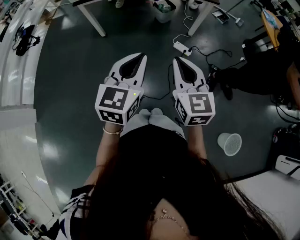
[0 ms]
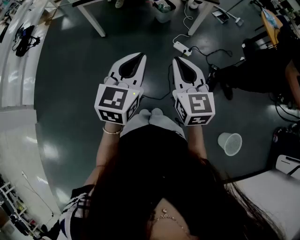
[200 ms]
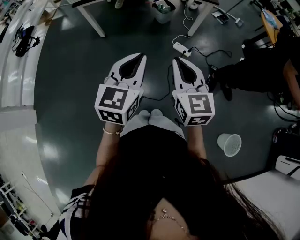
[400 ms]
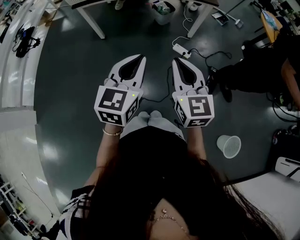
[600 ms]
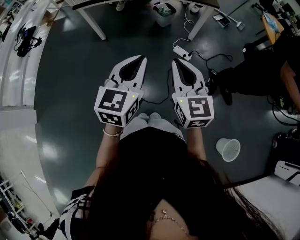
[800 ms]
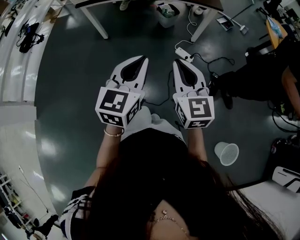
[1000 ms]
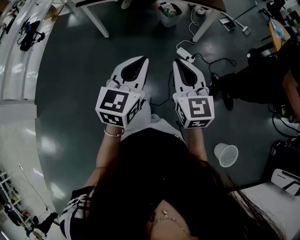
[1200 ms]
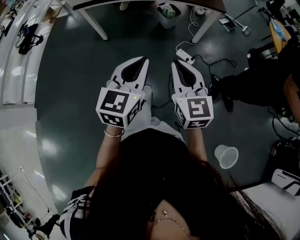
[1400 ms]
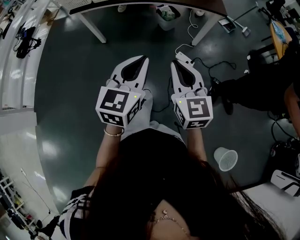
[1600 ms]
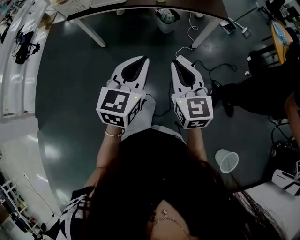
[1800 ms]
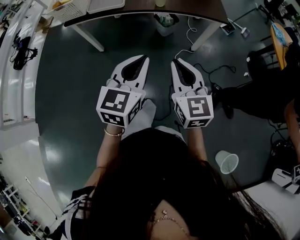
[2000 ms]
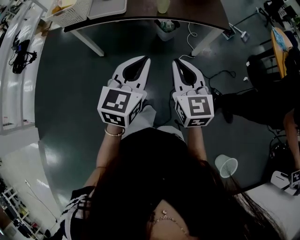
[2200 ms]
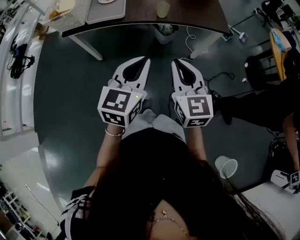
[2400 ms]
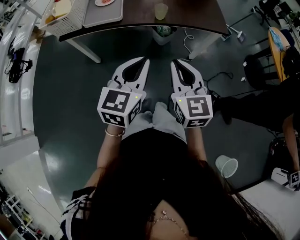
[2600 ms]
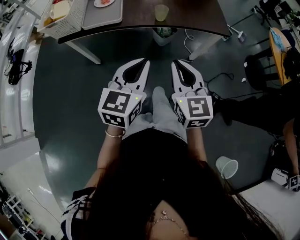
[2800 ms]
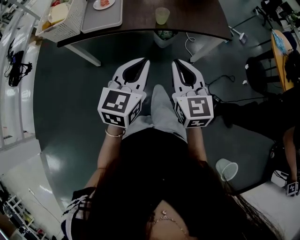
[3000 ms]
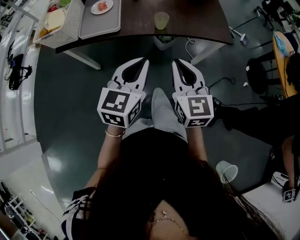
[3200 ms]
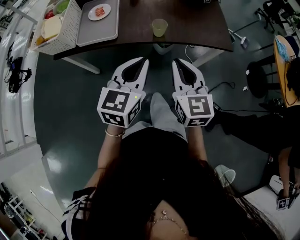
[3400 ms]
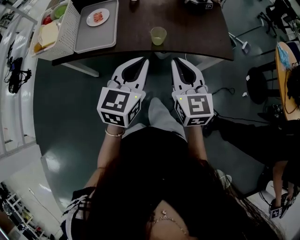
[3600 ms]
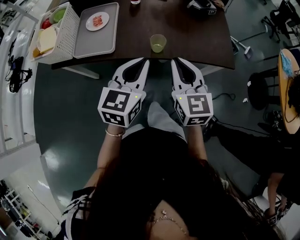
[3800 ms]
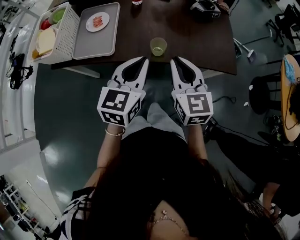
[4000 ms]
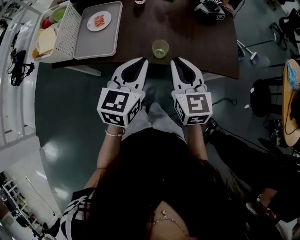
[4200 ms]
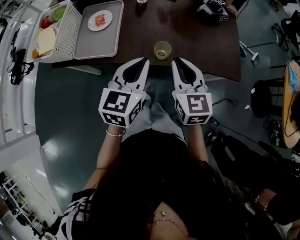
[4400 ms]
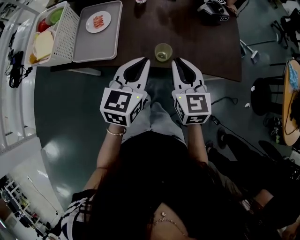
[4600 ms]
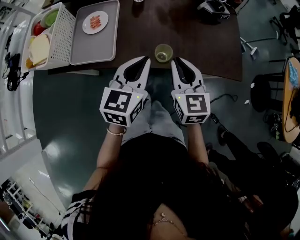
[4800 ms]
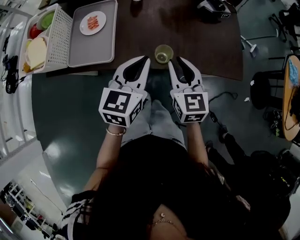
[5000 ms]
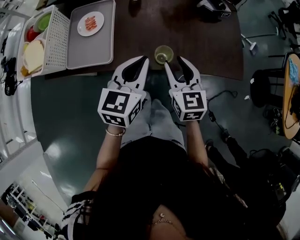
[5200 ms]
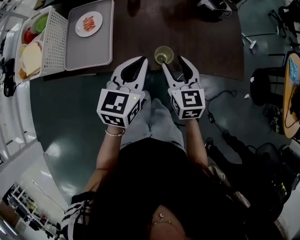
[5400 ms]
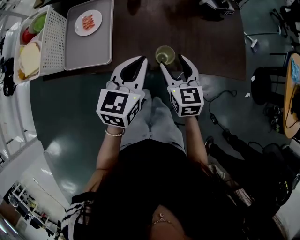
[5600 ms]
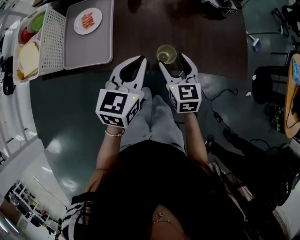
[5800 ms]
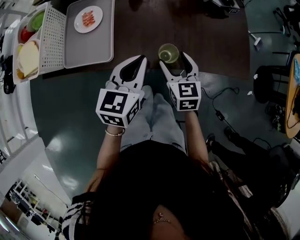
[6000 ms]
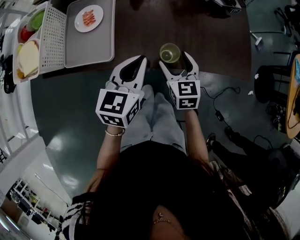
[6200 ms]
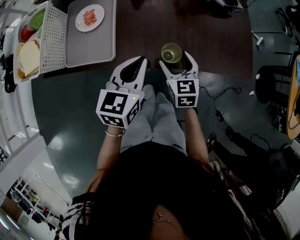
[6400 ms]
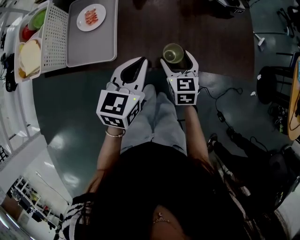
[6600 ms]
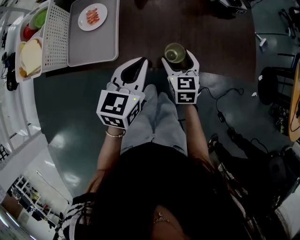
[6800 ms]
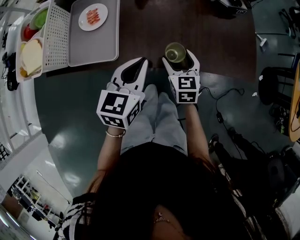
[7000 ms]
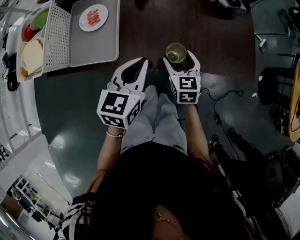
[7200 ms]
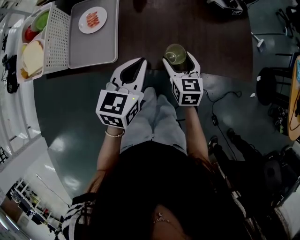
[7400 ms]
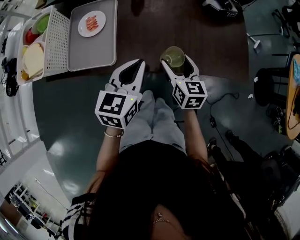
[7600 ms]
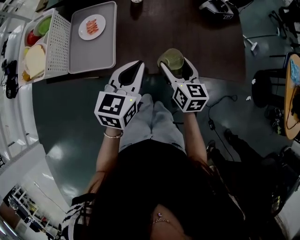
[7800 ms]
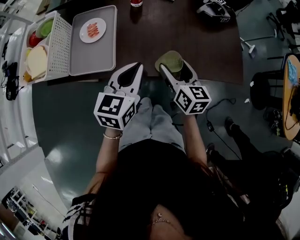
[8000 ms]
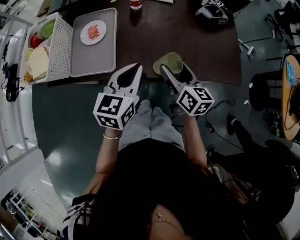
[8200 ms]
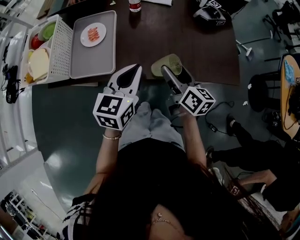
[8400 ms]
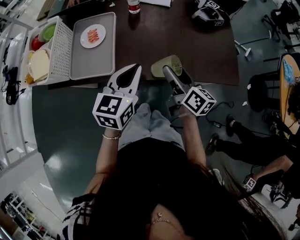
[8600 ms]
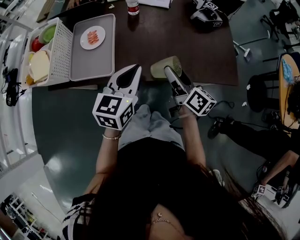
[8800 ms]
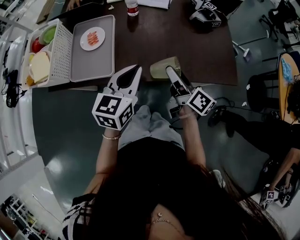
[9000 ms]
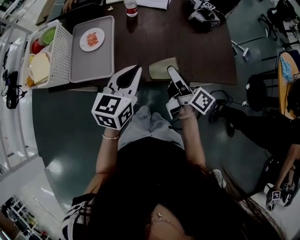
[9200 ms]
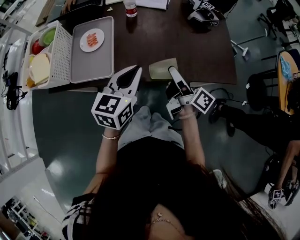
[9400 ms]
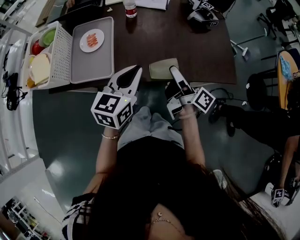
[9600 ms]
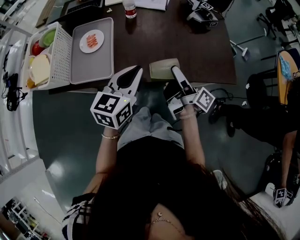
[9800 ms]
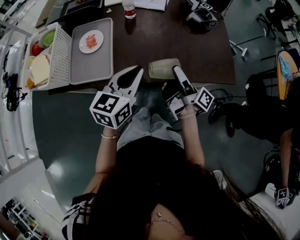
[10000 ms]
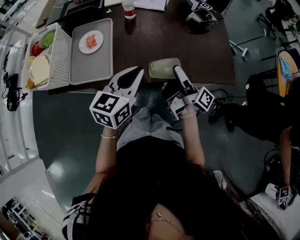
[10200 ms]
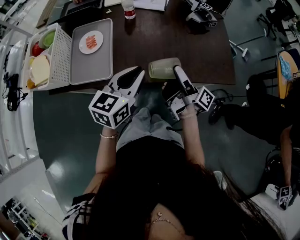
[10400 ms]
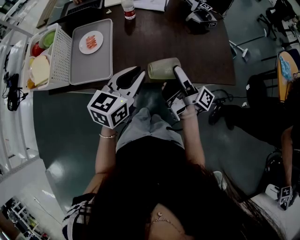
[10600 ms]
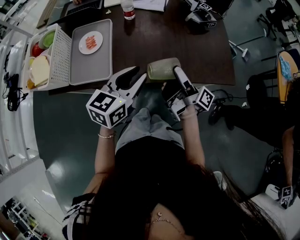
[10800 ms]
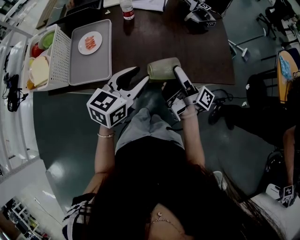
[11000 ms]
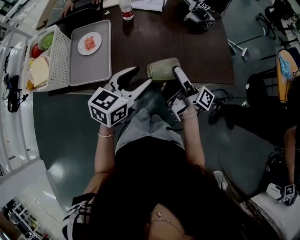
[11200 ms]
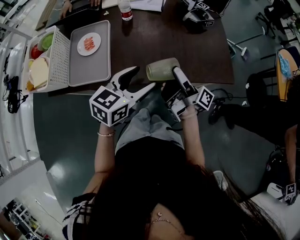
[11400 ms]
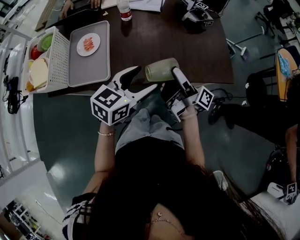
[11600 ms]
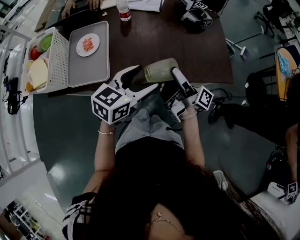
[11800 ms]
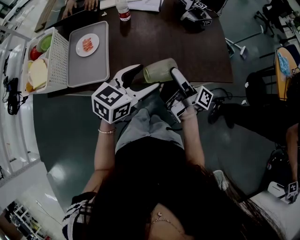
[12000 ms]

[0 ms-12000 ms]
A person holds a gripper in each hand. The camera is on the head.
0 ms to 1600 ms: Both grippers travel together forward, roughly 10 cm.
1600 ms to 3000 ms: Both grippers travel together forward, roughly 25 cm.
3000 ms to 4400 ms: The two grippers go roughly 25 cm forward.
4400 ms to 6000 ms: The left gripper moves forward and downward, some 10 cm; the right gripper moves downward and forward, about 15 cm, and opens.
6000 ms to 7600 ms: There are only small adjustments of the grippers.
7600 ms to 9000 ms: The right gripper moves upward, roughly 10 cm, and rolls clockwise, seen from behind, by some 40 degrees.
9000 ms to 10400 ms: The right gripper rotates some 40 degrees.
10400 ms to 12000 ms: The left gripper travels to the right by some 5 cm, and opens.

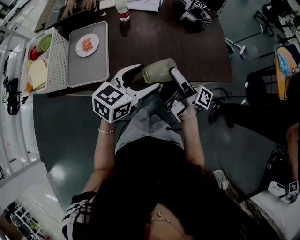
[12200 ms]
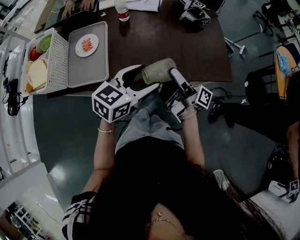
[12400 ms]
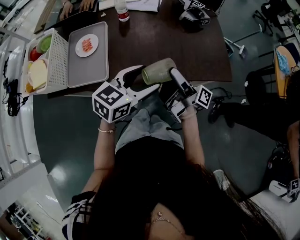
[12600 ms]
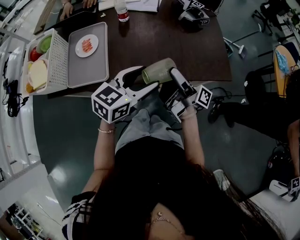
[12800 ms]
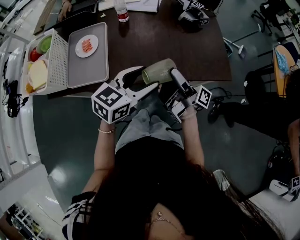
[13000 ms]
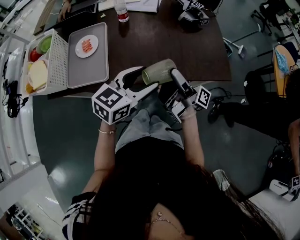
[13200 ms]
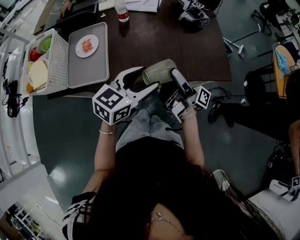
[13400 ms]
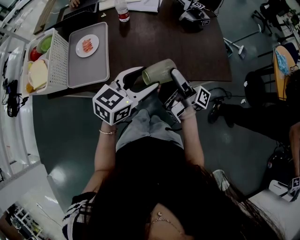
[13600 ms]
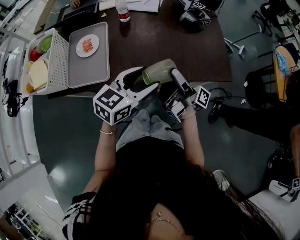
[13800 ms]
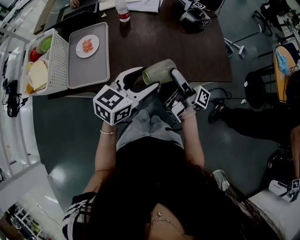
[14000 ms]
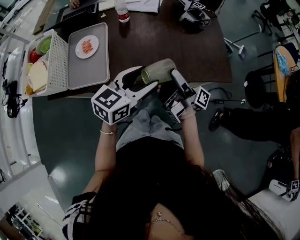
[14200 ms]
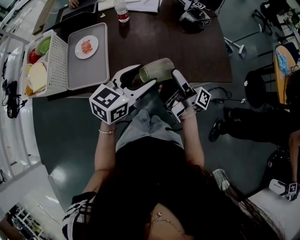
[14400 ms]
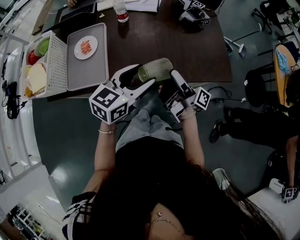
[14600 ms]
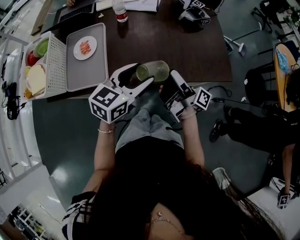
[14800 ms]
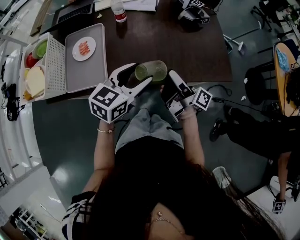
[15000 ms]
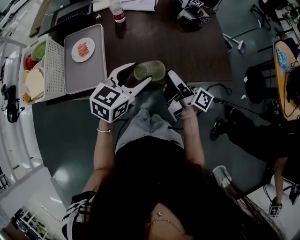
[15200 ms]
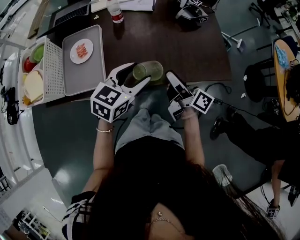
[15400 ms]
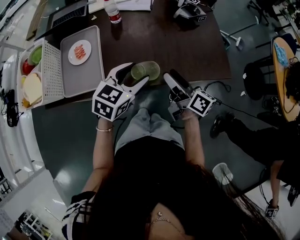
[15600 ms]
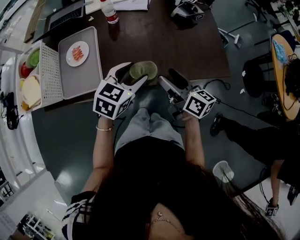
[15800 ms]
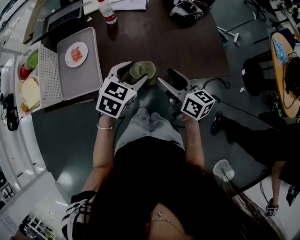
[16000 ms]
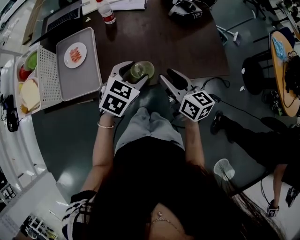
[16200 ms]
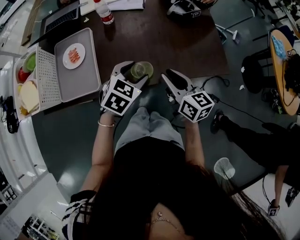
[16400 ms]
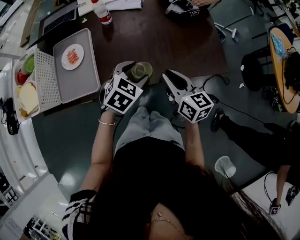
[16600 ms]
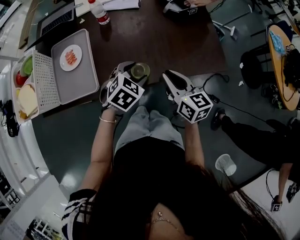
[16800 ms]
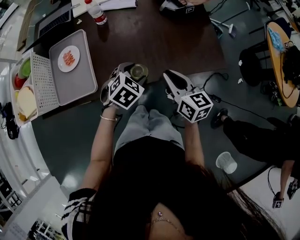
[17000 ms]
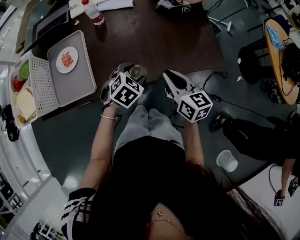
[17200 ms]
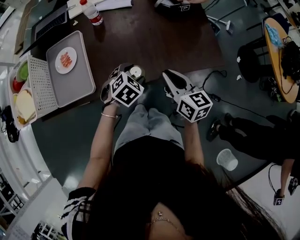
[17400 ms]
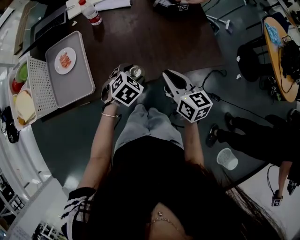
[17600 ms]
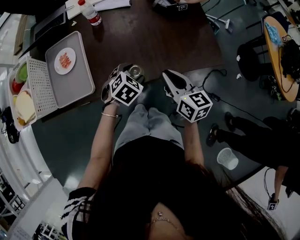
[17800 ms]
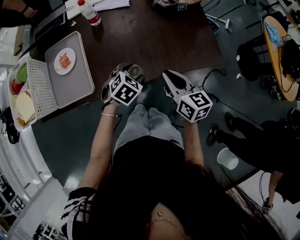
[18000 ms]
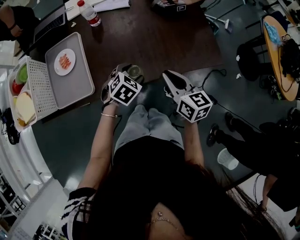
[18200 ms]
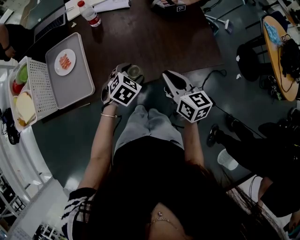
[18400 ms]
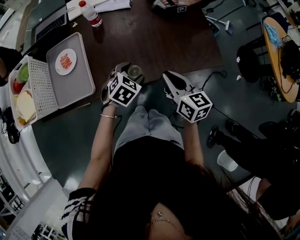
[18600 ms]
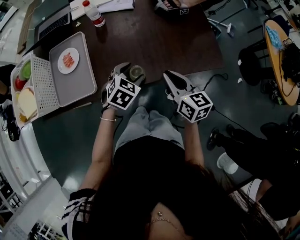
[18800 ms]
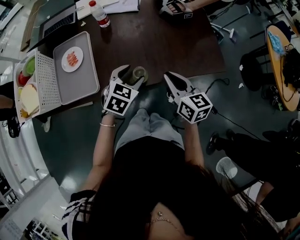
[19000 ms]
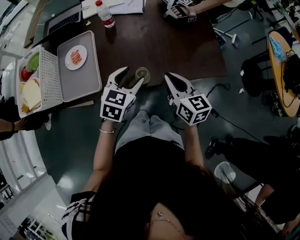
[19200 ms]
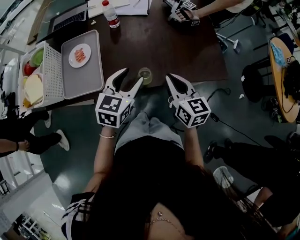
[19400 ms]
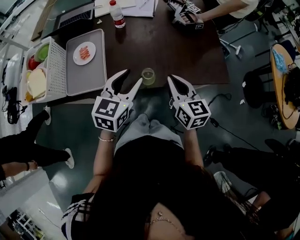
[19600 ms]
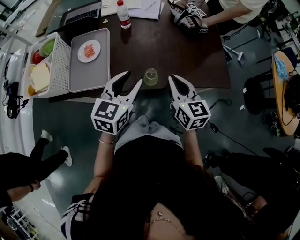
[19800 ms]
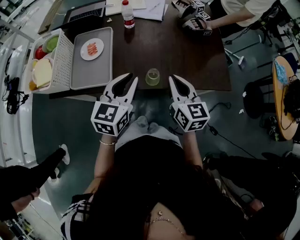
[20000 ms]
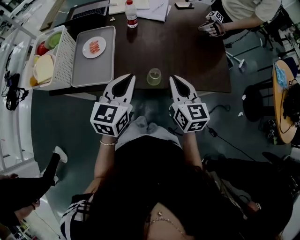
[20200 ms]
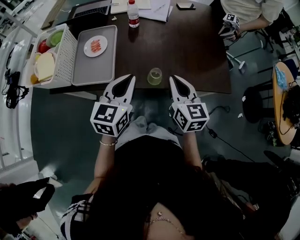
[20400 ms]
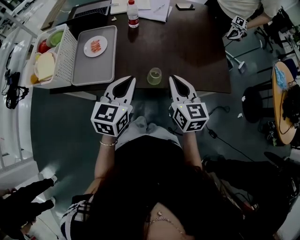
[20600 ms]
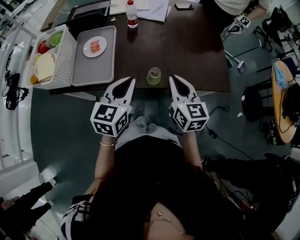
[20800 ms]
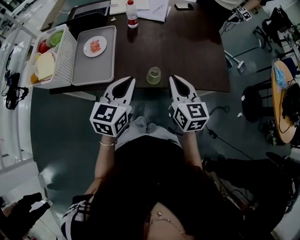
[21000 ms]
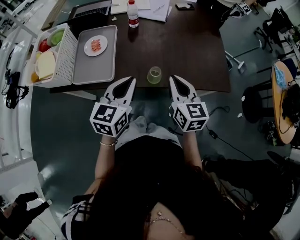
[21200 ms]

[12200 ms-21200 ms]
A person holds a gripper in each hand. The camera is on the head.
12200 ms to 13800 ms: The grippers move only a little.
13800 ms to 15200 ms: The right gripper moves about 5 cm, and changes its angle by some 20 degrees.
15200 ms to 16600 ms: The left gripper is displaced downward by about 10 cm, and swivels roughly 30 degrees, while the right gripper rolls counterclockwise, seen from behind, by roughly 50 degrees, and closes.
16600 ms to 18200 ms: The left gripper goes some 10 cm downward.
18200 ms to 19800 ms: The right gripper goes roughly 5 cm upward. The left gripper shifts about 20 cm upward, and tilts its fingers about 40 degrees upward.
19800 ms to 21200 ms: The left gripper closes up.

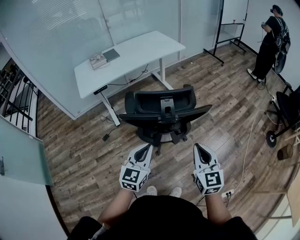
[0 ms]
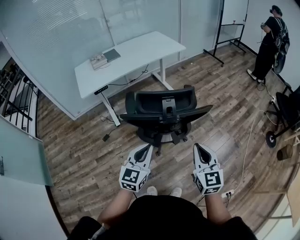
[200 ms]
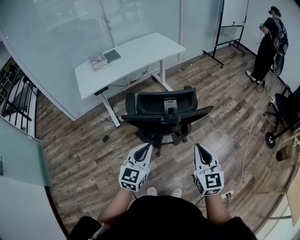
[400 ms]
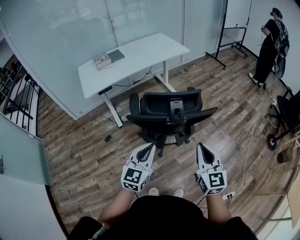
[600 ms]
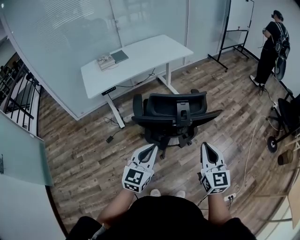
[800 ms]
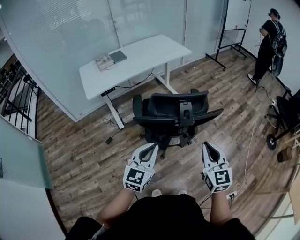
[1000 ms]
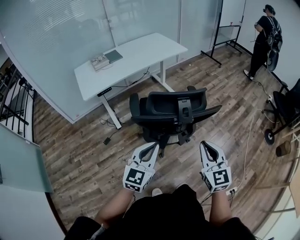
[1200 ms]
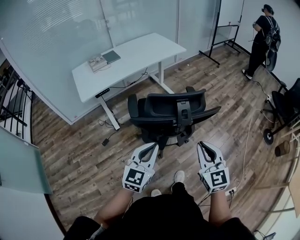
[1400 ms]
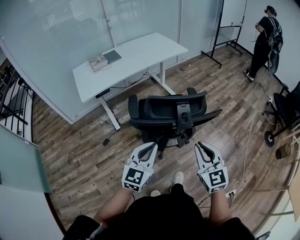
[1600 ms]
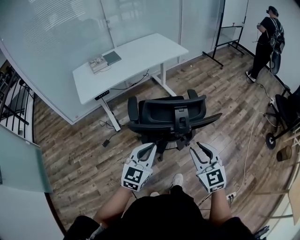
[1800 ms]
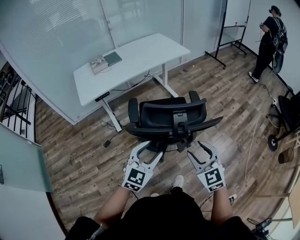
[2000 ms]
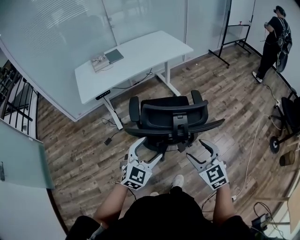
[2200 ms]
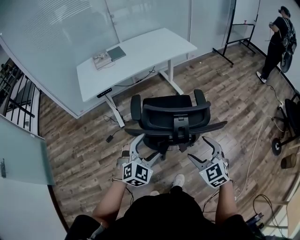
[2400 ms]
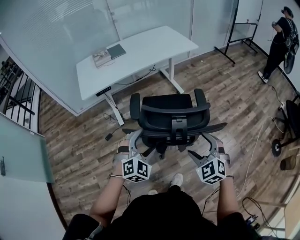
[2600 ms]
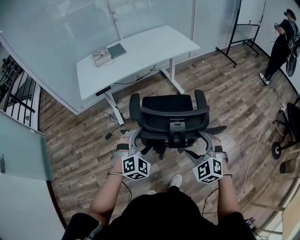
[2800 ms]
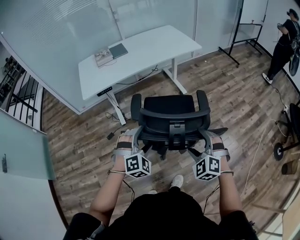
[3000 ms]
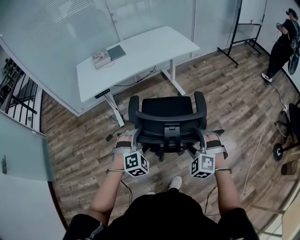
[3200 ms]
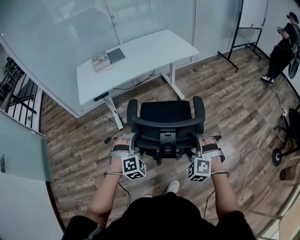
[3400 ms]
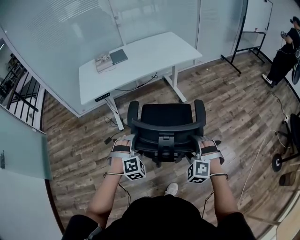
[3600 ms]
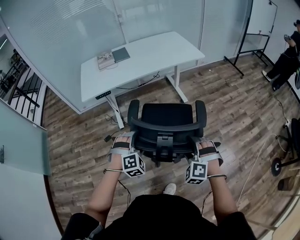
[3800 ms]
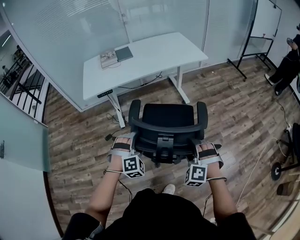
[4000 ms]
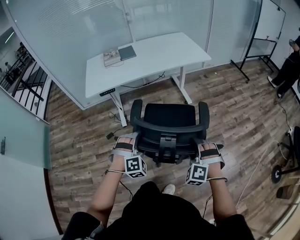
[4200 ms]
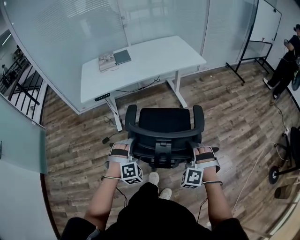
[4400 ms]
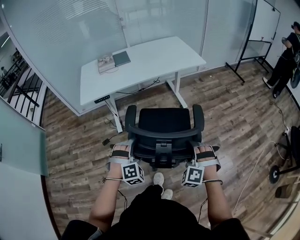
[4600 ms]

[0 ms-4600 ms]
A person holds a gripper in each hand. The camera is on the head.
0 ms to 1600 ms: The right gripper goes roughly 10 cm to the left. The left gripper goes about 5 cm to the left.
1600 ms to 3000 ms: Both grippers travel together forward and downward, roughly 15 cm. The left gripper turns by some 60 degrees, and opens up, while the right gripper twists some 40 degrees counterclockwise, seen from behind, and opens.
3000 ms to 4600 ms: The right gripper moves forward, roughly 5 cm, and turns by roughly 20 degrees, while the left gripper moves about 5 cm.
